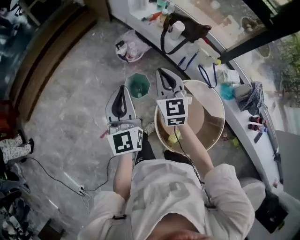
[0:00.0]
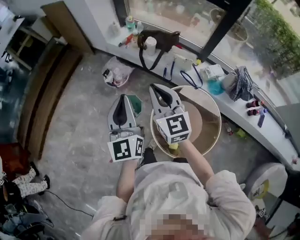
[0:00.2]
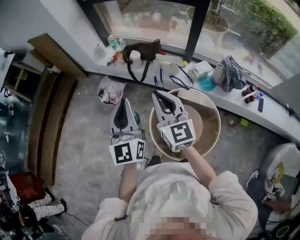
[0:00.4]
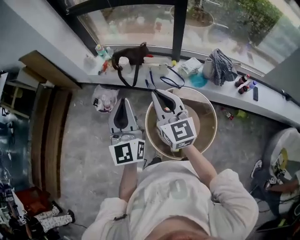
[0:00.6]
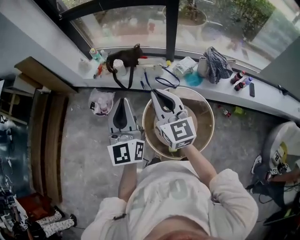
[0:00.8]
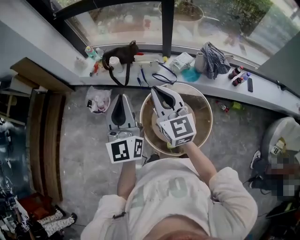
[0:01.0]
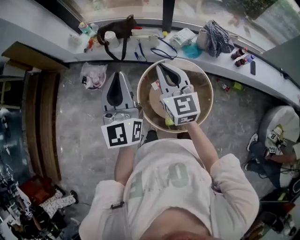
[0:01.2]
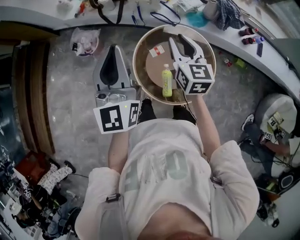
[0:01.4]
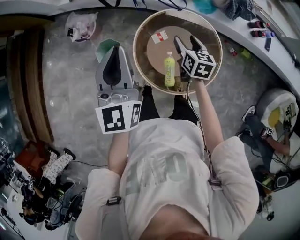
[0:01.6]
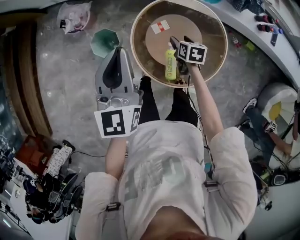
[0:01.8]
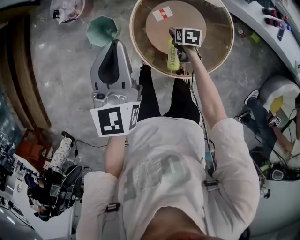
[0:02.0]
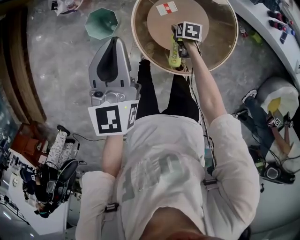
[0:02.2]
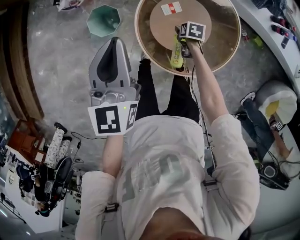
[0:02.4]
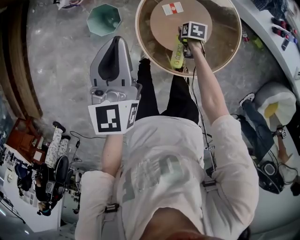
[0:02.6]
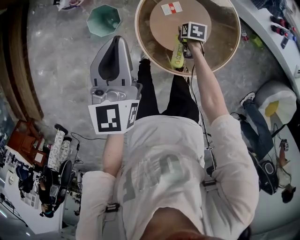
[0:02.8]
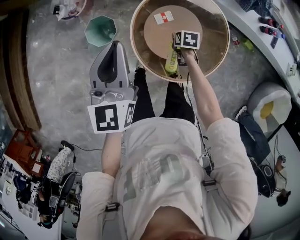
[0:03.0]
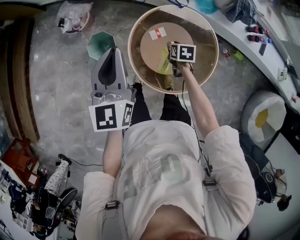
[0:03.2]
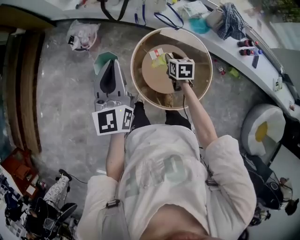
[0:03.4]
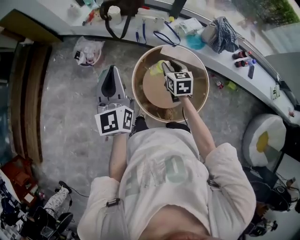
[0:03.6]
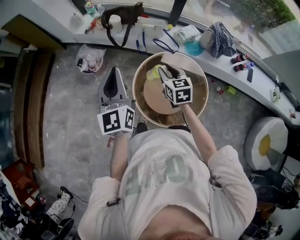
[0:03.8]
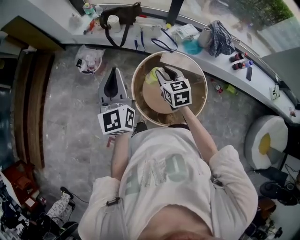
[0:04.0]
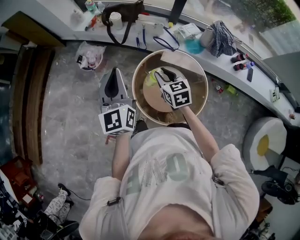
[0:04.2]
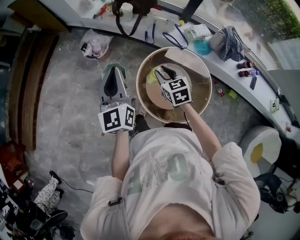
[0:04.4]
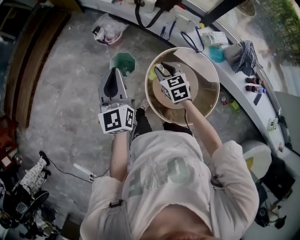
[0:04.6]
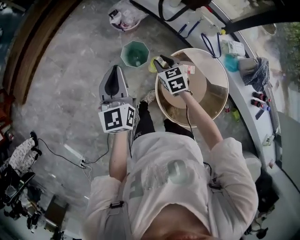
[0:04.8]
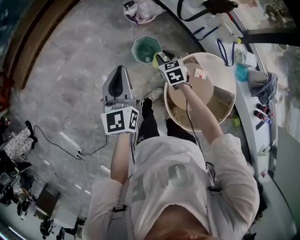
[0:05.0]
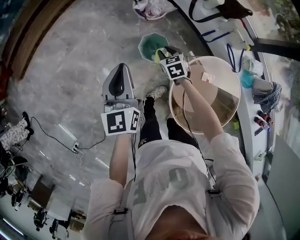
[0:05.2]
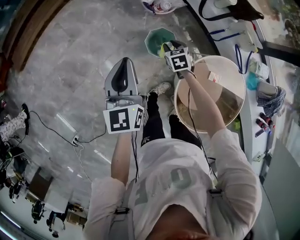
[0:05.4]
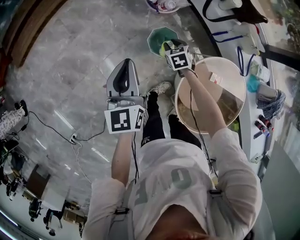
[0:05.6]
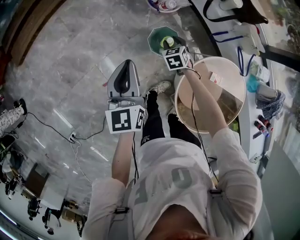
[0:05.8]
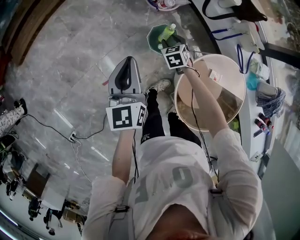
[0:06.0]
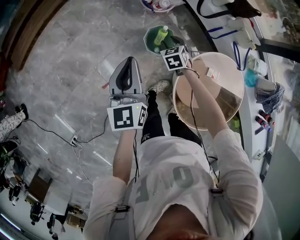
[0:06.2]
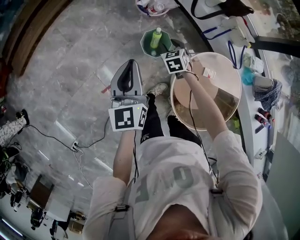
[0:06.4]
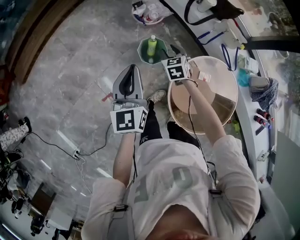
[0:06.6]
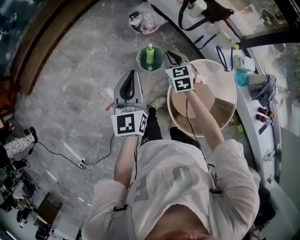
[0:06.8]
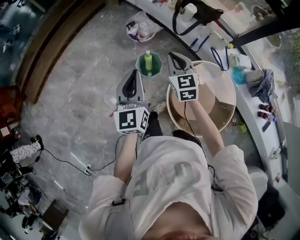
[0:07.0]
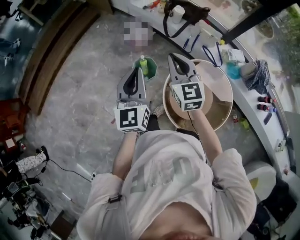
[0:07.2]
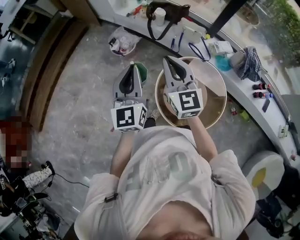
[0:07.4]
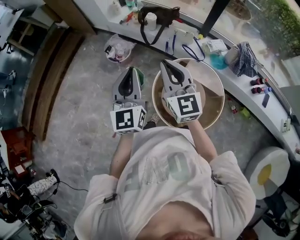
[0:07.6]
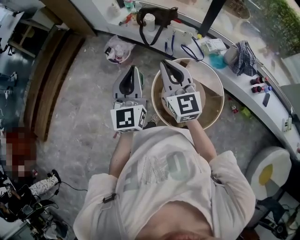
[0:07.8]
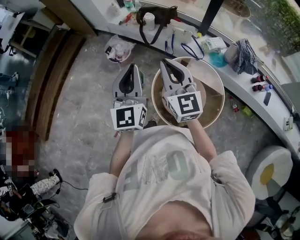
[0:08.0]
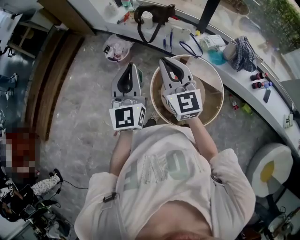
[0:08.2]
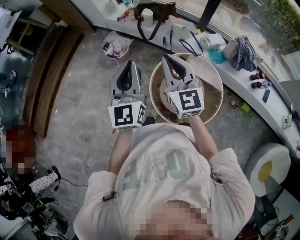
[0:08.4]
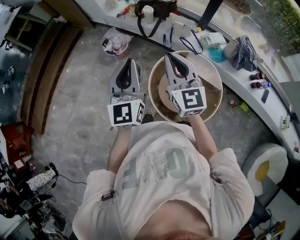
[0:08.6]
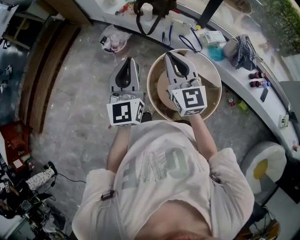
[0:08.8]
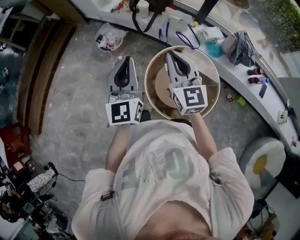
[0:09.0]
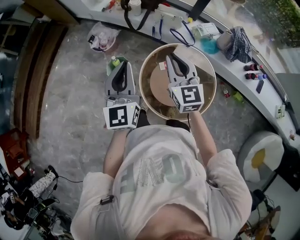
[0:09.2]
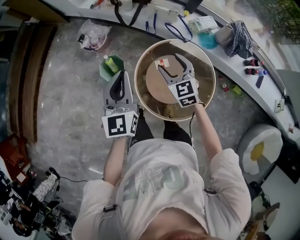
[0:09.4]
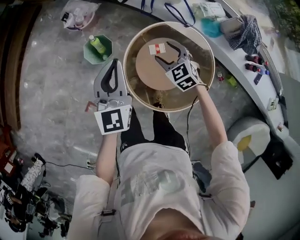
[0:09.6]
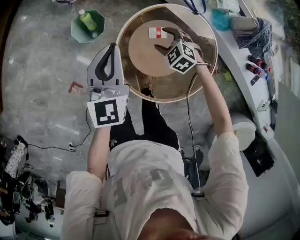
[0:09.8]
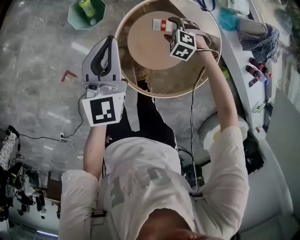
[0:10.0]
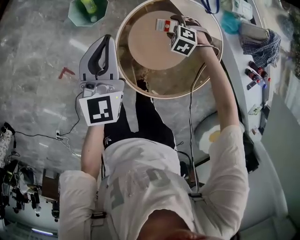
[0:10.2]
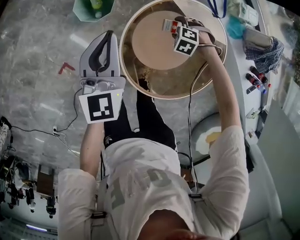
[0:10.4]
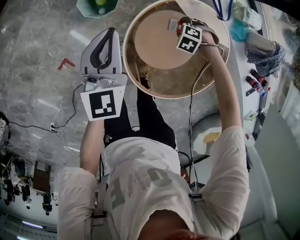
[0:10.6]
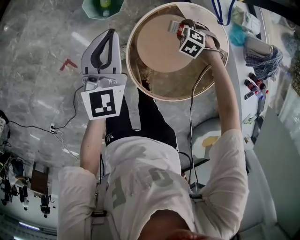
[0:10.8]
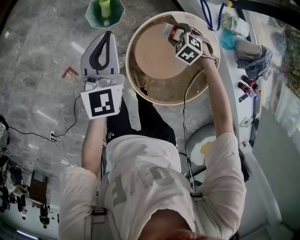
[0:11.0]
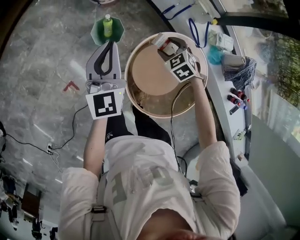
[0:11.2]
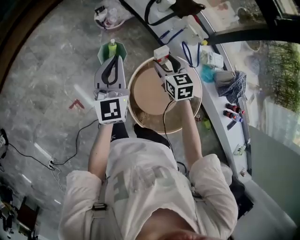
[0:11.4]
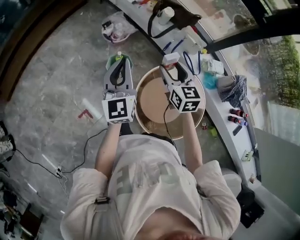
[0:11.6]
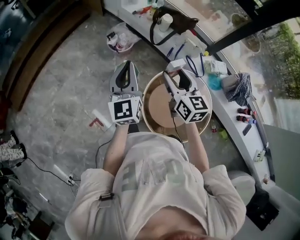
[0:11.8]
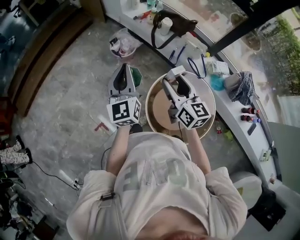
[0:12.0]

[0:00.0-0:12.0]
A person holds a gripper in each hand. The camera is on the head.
0:00.0 to 0:01.6: The left gripper moves some 15 cm upward and comes back, and turns by some 40 degrees; the right gripper shifts by roughly 40 cm, swivels some 60 degrees, and opens up.
0:01.6 to 0:03.0: The left gripper shifts approximately 10 cm downward. Meanwhile the right gripper moves downward, about 25 cm, tips its fingers downward by roughly 40 degrees, and closes its fingers.
0:03.0 to 0:04.4: The left gripper travels upward by approximately 10 cm, and changes its angle by about 20 degrees. Meanwhile the right gripper travels upward by some 30 cm, and angles its fingers upward, by approximately 40 degrees.
0:04.4 to 0:06.0: The left gripper ends up about 30 cm from where it was, and swivels about 30 degrees. The right gripper shifts by approximately 40 cm, and rotates some 30 degrees.
0:06.0 to 0:07.6: The right gripper heads upward, to the right and backward, covering some 50 cm, angles its fingers upward, by approximately 50 degrees, and closes. Meanwhile the left gripper moves to the right and upward, some 30 cm, and rotates some 30 degrees.
0:07.6 to 0:09.0: The right gripper shifts approximately 5 cm to the right.
0:09.0 to 0:10.4: The left gripper heads downward, covering about 30 cm, and rotates approximately 20 degrees. Meanwhile the right gripper shifts about 60 cm downward, tilts its fingers approximately 80 degrees downward, and opens its fingers.
0:10.4 to 0:12.0: The left gripper goes about 25 cm upward, and swivels roughly 20 degrees. Meanwhile the right gripper is displaced upward by some 50 cm, and tilts its fingers about 80 degrees upward.

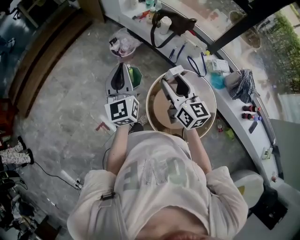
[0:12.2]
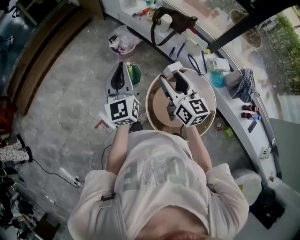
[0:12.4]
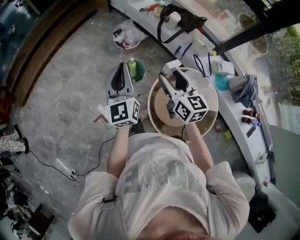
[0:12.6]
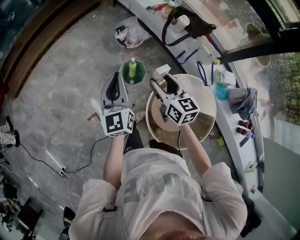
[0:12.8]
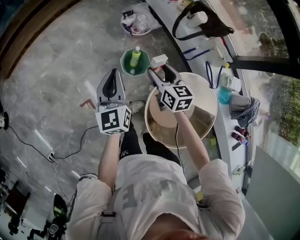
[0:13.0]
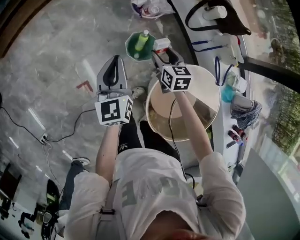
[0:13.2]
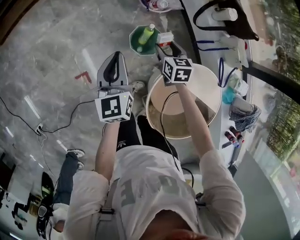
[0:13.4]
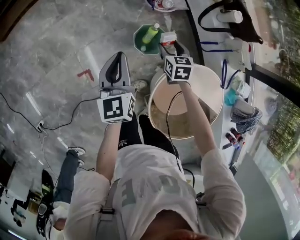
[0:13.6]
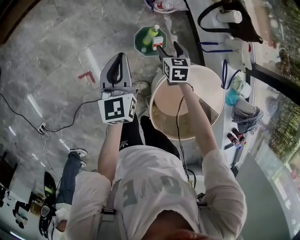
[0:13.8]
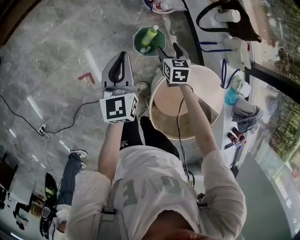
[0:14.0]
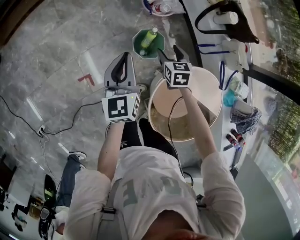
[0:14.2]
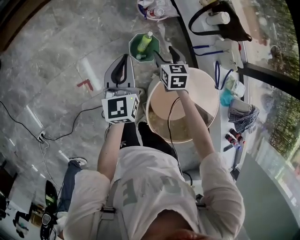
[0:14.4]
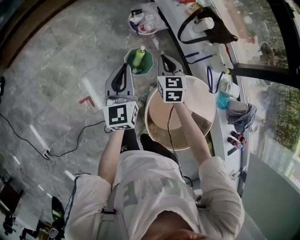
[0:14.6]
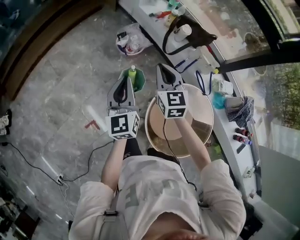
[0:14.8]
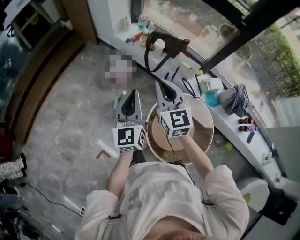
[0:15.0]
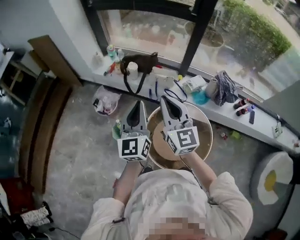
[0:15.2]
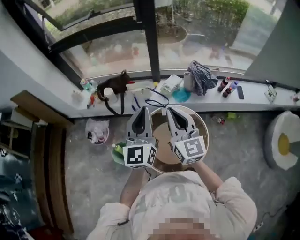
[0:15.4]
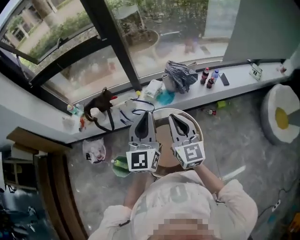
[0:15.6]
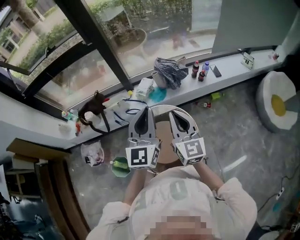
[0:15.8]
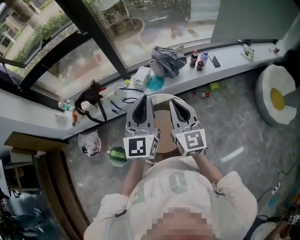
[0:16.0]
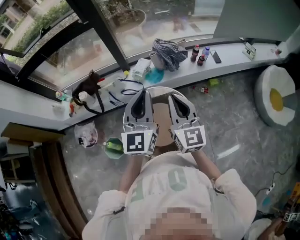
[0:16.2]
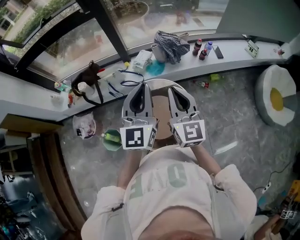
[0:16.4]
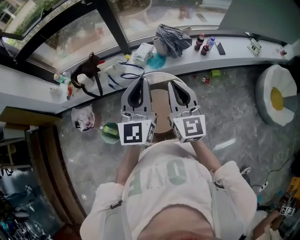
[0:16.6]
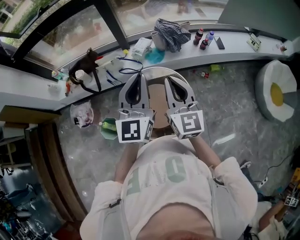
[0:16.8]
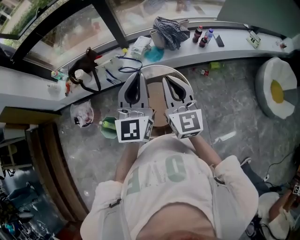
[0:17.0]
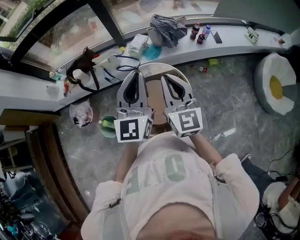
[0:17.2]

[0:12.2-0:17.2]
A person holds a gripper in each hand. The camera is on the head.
0:12.2 to 0:13.8: The left gripper travels downward and to the left by about 25 cm, and changes its angle by some 30 degrees. Meanwhile the right gripper heads downward and forward, covering approximately 40 cm, and points its fingers some 40 degrees further downward.
0:13.8 to 0:15.6: The pair of grippers is taken about 50 cm. The right gripper tilts its fingers some 50 degrees upward, and closes, while the left gripper changes its angle by roughly 90 degrees.

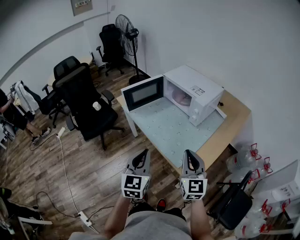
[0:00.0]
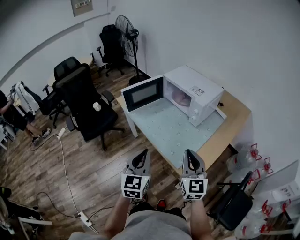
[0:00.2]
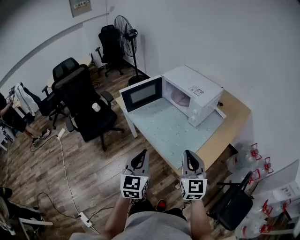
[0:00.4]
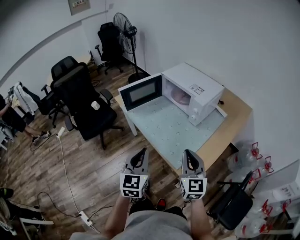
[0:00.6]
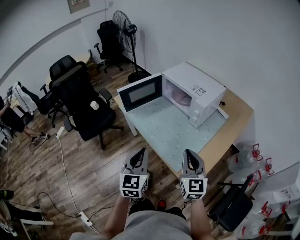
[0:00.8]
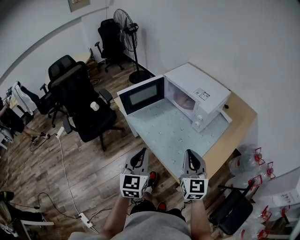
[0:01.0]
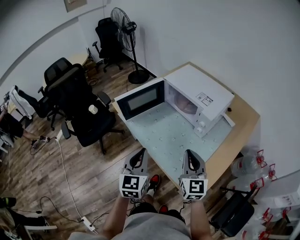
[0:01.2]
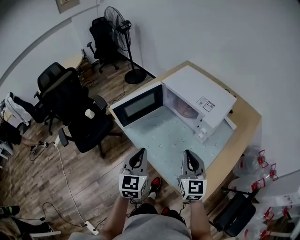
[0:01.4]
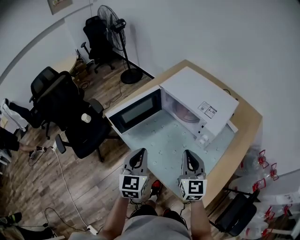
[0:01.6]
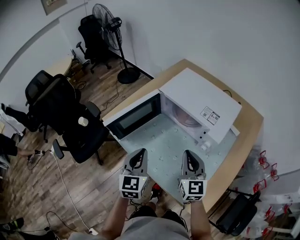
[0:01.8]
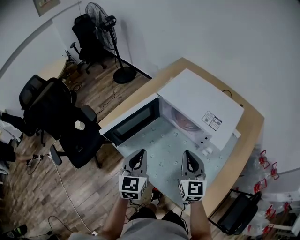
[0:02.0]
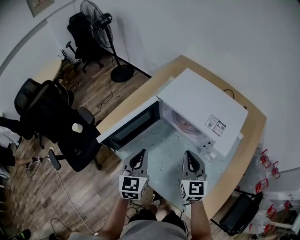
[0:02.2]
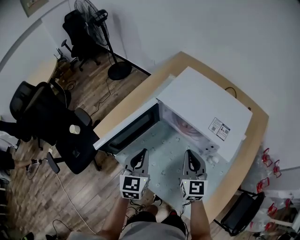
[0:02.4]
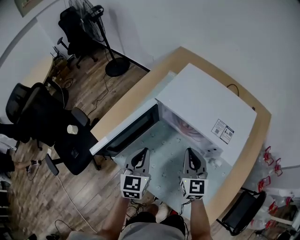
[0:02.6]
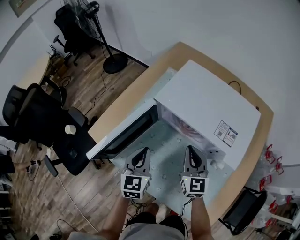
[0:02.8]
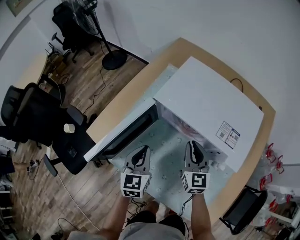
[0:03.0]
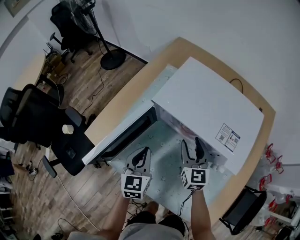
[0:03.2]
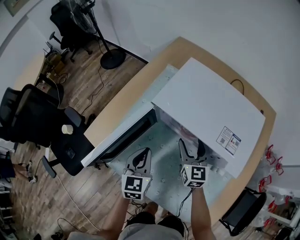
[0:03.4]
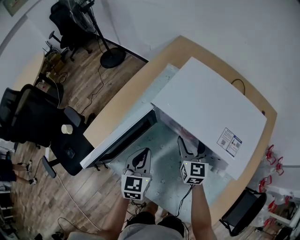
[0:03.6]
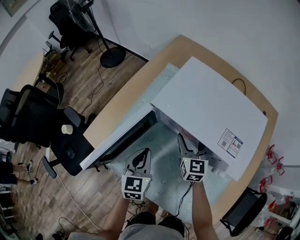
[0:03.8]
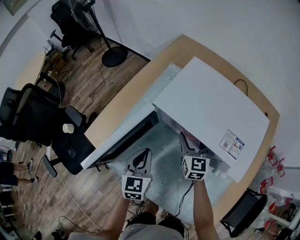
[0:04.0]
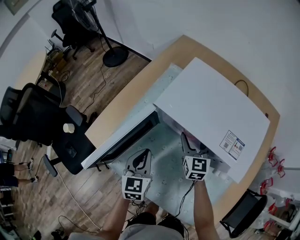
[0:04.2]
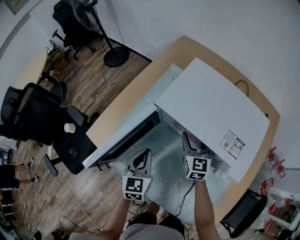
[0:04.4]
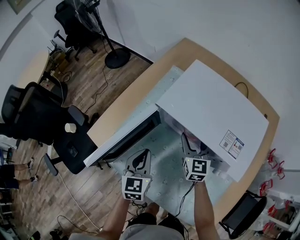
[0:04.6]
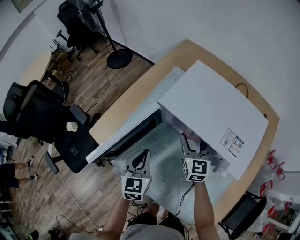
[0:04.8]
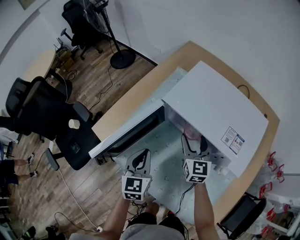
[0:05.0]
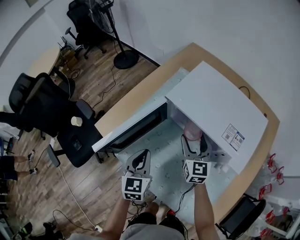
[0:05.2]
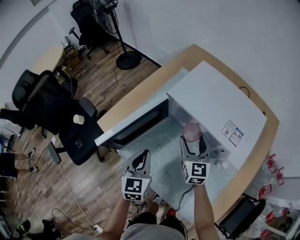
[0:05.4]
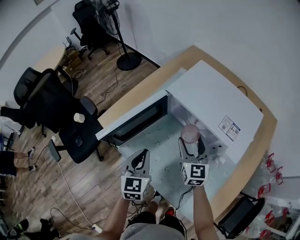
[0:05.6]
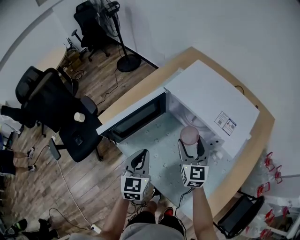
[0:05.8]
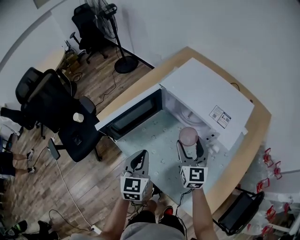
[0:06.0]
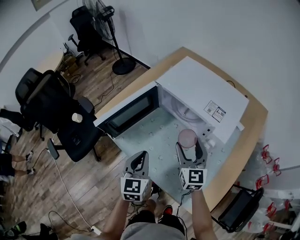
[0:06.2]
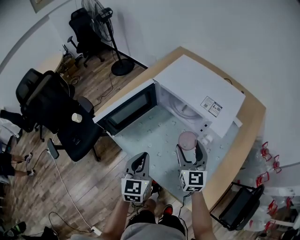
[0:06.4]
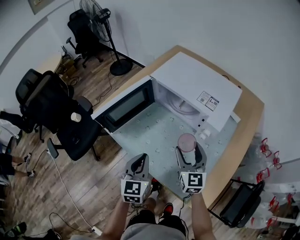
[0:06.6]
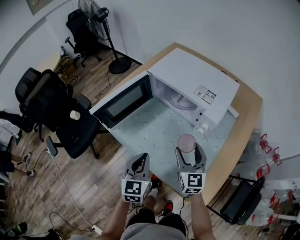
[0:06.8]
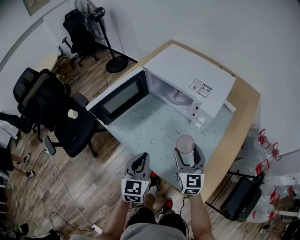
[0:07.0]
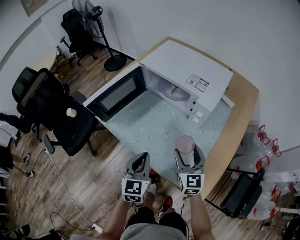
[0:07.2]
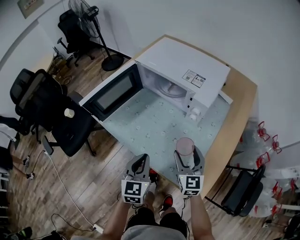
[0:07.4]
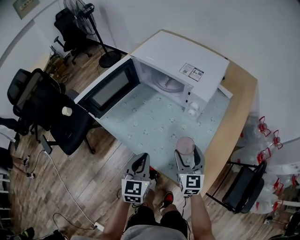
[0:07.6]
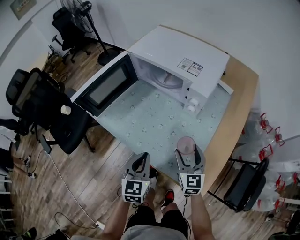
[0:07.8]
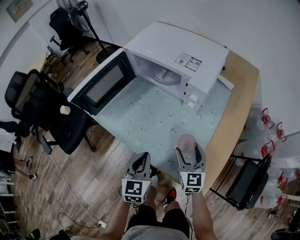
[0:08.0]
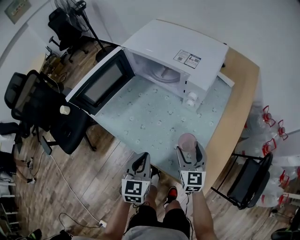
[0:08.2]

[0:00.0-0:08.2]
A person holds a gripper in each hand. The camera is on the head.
0:00.0 to 0:01.6: The two grippers go some 25 cm forward.
0:01.6 to 0:03.2: Both grippers travel together forward and downward, about 25 cm. The right gripper opens its fingers.
0:03.2 to 0:05.0: The right gripper opens up.
0:05.0 to 0:06.6: The grippers both shift backward by roughly 20 cm.
0:06.6 to 0:08.2: The two grippers go approximately 15 cm downward, backward and to the right.
